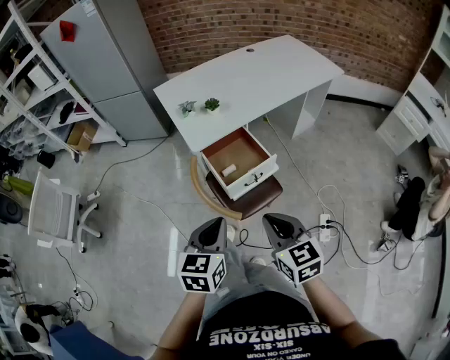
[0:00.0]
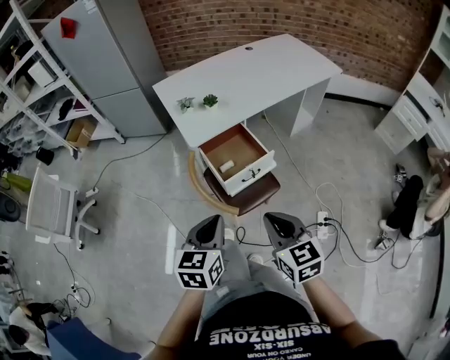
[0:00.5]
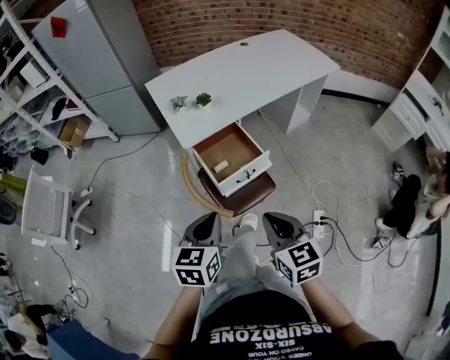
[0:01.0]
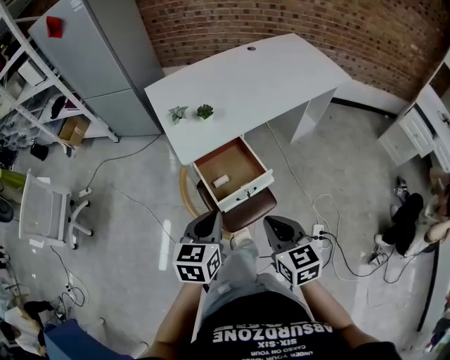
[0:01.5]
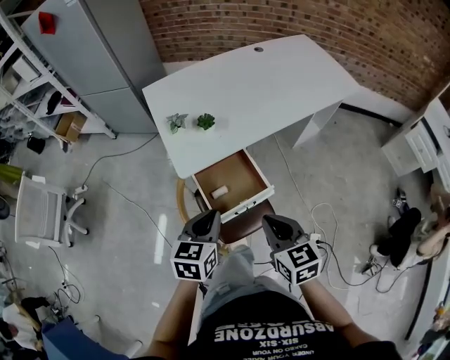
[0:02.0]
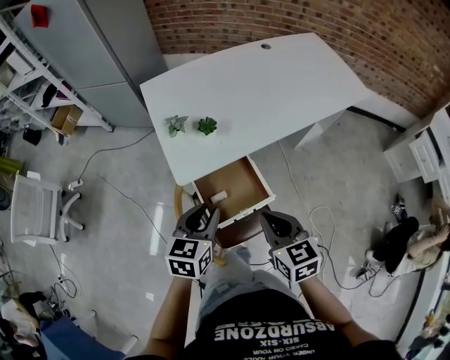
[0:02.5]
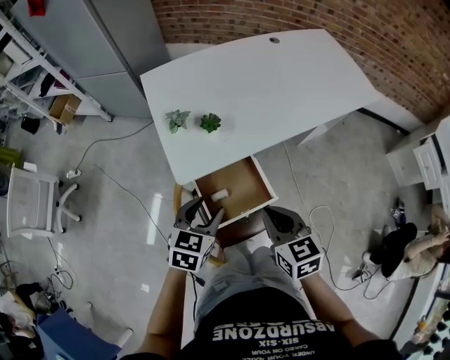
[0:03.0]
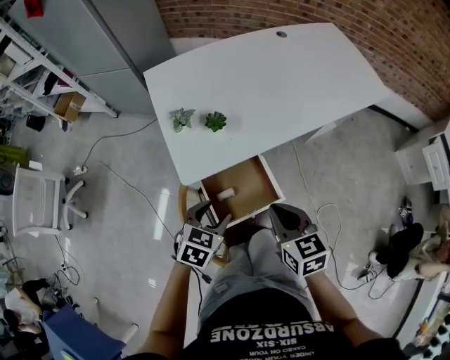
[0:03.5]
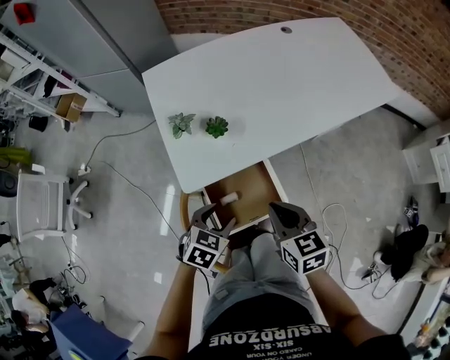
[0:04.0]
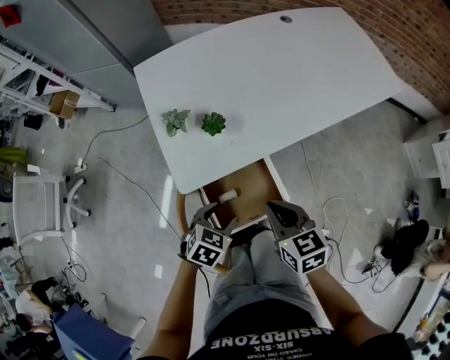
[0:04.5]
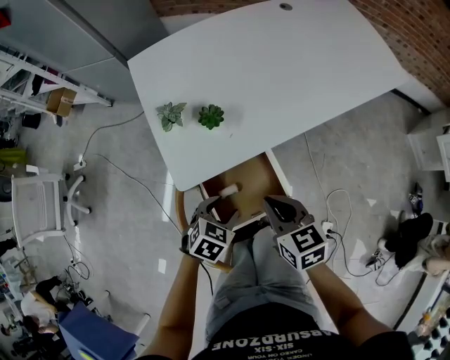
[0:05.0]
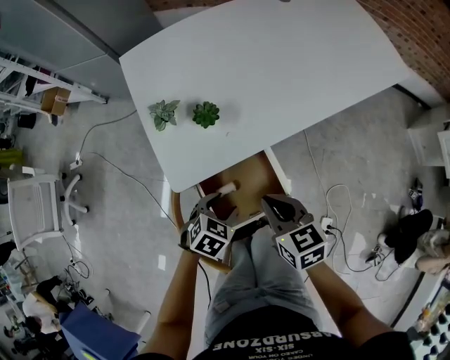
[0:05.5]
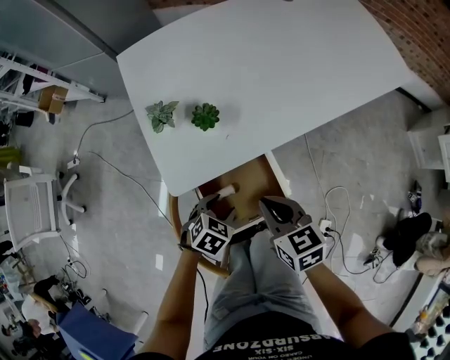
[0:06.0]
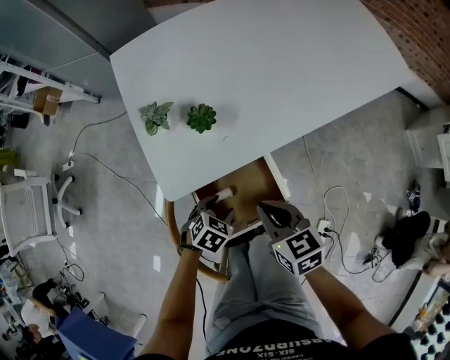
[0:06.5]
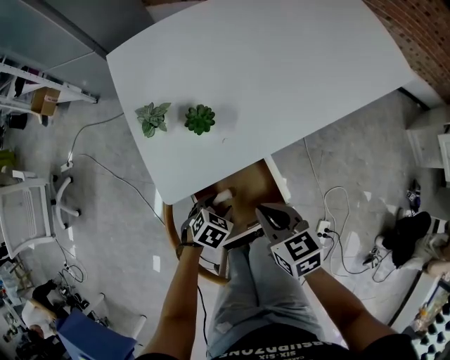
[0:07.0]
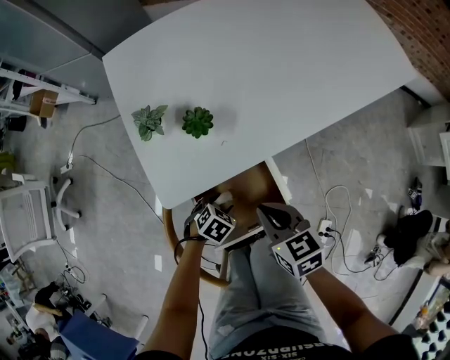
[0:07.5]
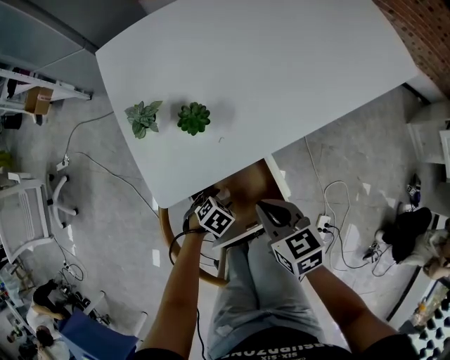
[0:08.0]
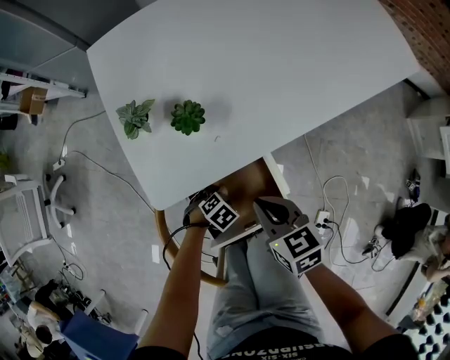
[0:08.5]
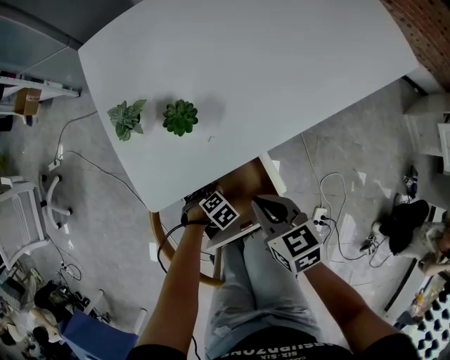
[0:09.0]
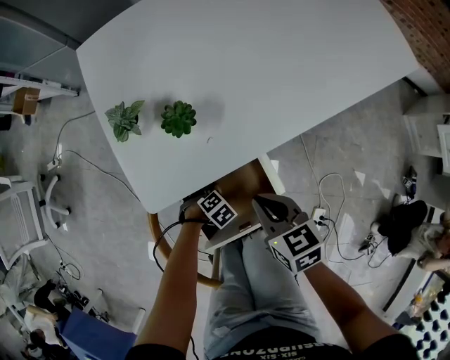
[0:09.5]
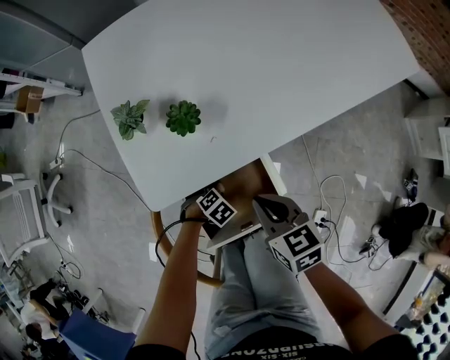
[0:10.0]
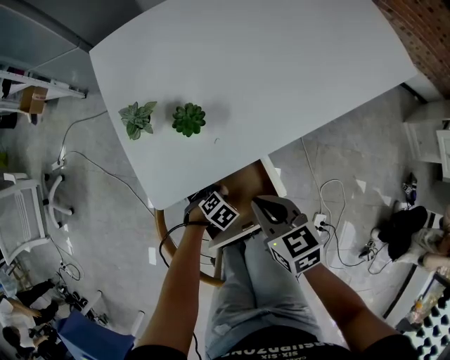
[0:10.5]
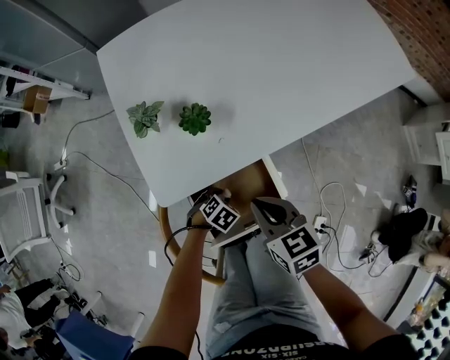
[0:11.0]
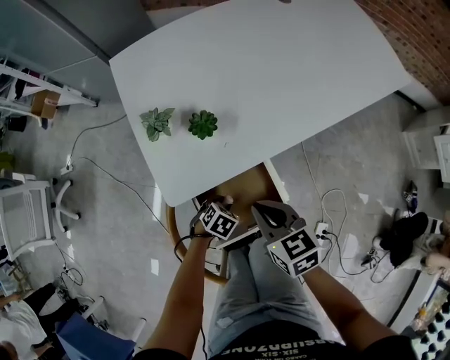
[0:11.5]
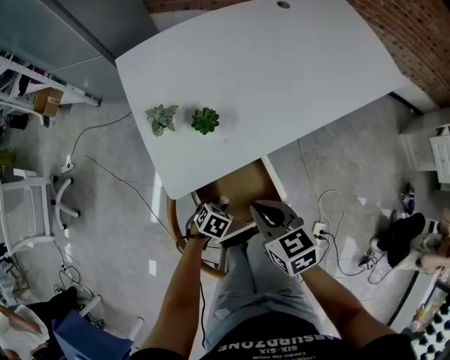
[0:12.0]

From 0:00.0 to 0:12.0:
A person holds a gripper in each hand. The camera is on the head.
From 0:00.0 to 0:02.0: The grippers both shift forward by about 20 cm.
From 0:02.0 to 0:04.0: The right gripper moves forward and downward, some 20 cm; the left gripper moves downward and forward, roughly 20 cm, changes its angle by approximately 30 degrees, and opens up.
From 0:04.0 to 0:06.0: The right gripper goes some 10 cm downward, while the left gripper travels downward by roughly 15 cm.
From 0:06.0 to 0:08.0: The left gripper shifts roughly 15 cm downward. Meanwhile the right gripper travels downward by some 5 cm.
From 0:08.0 to 0:10.0: The left gripper shifts by approximately 5 cm.
From 0:10.0 to 0:12.0: Both grippers travel together upward, some 10 cm. The left gripper swivels approximately 20 degrees.

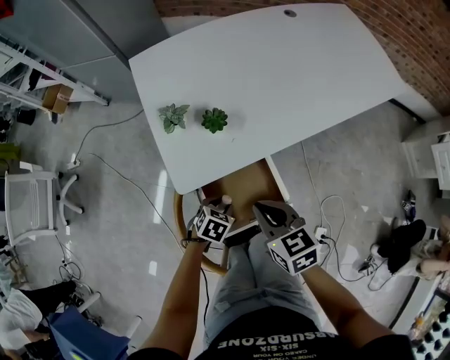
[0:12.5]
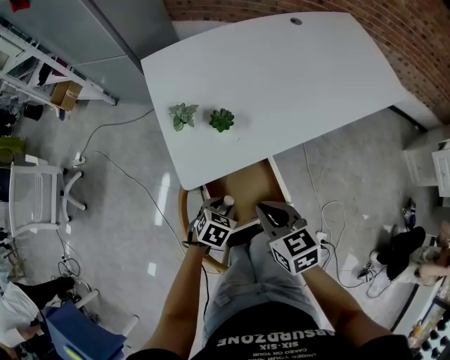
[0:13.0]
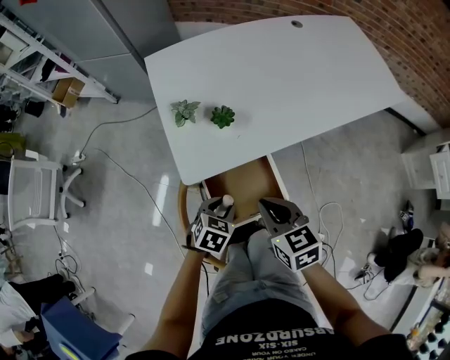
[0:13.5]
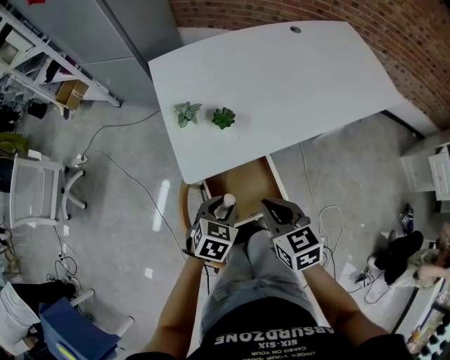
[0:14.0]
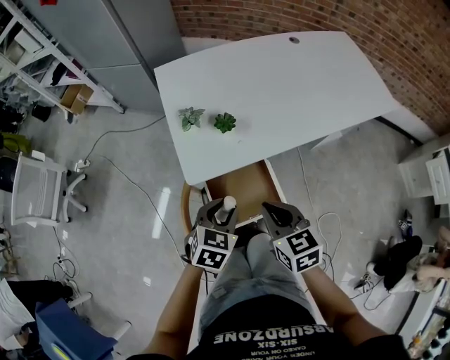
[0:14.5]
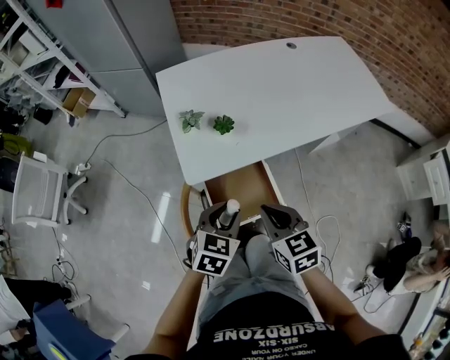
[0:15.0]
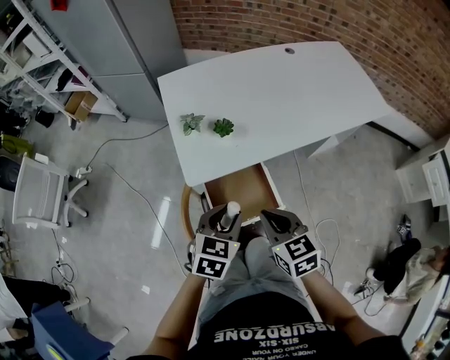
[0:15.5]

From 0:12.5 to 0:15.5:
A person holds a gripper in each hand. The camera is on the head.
From 0:12.5 to 0:14.0: The left gripper is displaced upward by some 15 cm. Meanwhile the right gripper shifts by some 5 cm.
From 0:14.0 to 0:15.5: The left gripper moves upward, some 10 cm. Meanwhile the right gripper changes place by roughly 5 cm.

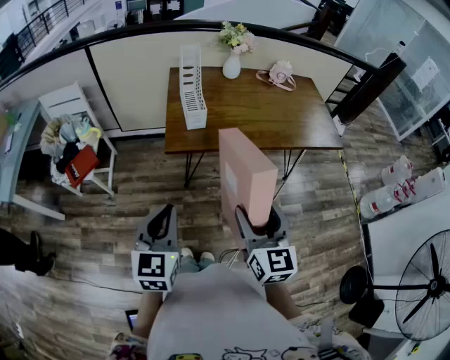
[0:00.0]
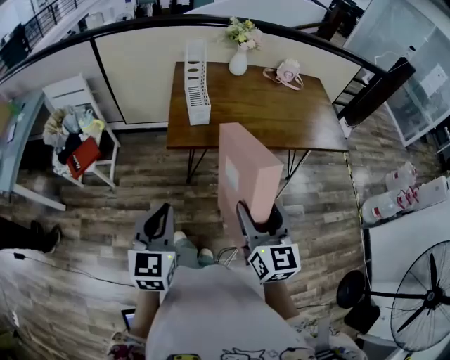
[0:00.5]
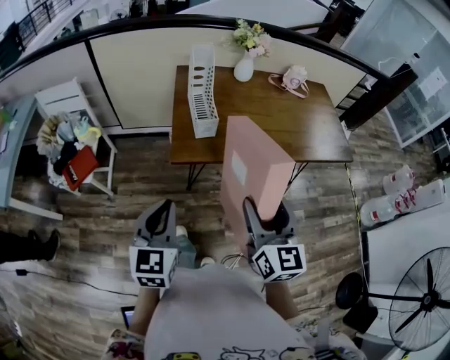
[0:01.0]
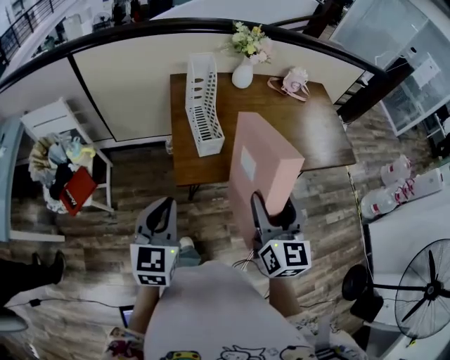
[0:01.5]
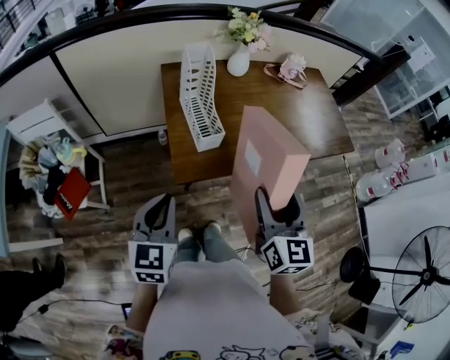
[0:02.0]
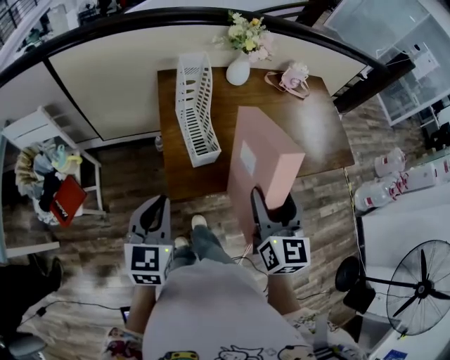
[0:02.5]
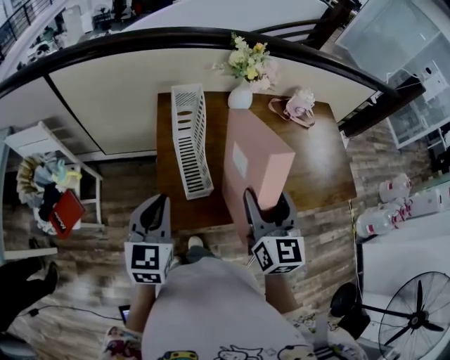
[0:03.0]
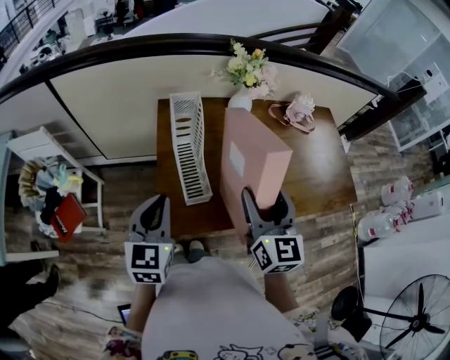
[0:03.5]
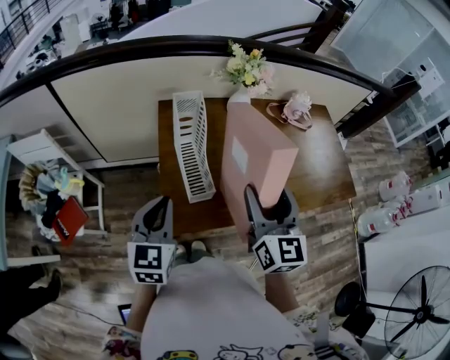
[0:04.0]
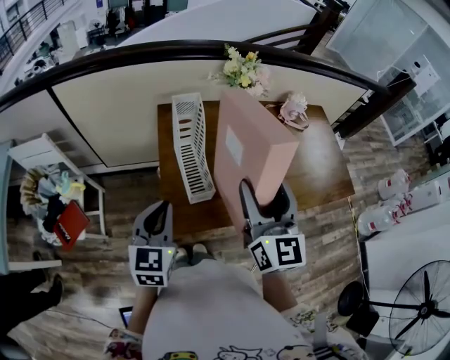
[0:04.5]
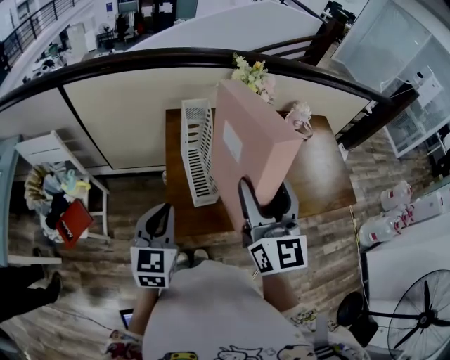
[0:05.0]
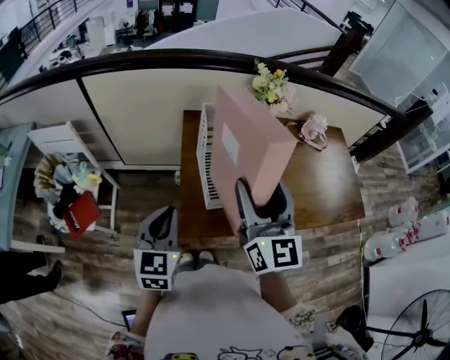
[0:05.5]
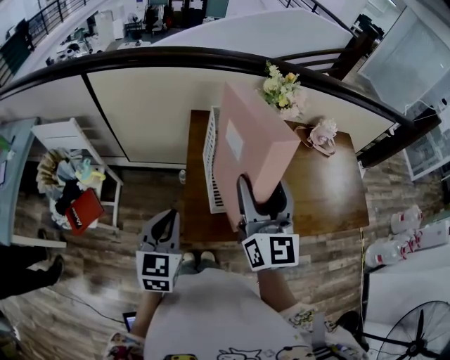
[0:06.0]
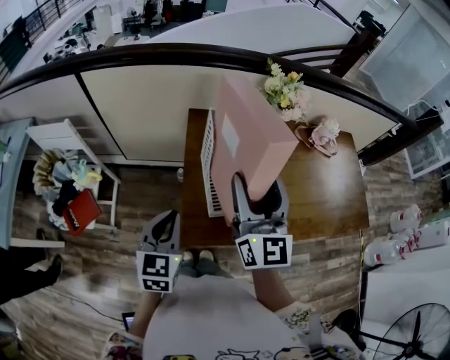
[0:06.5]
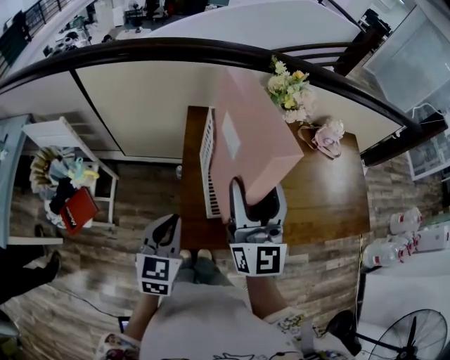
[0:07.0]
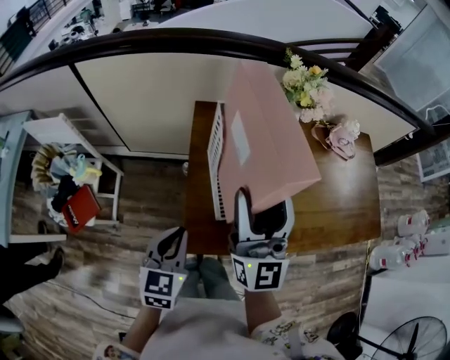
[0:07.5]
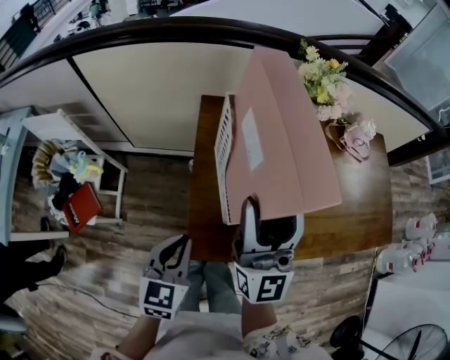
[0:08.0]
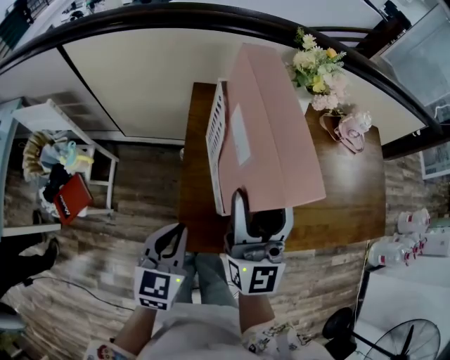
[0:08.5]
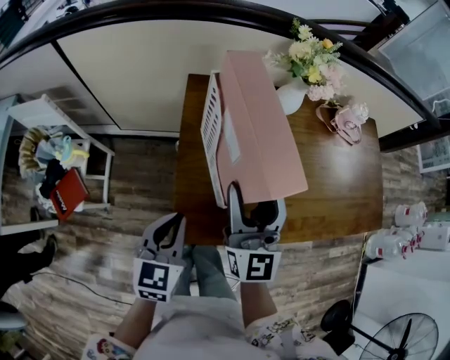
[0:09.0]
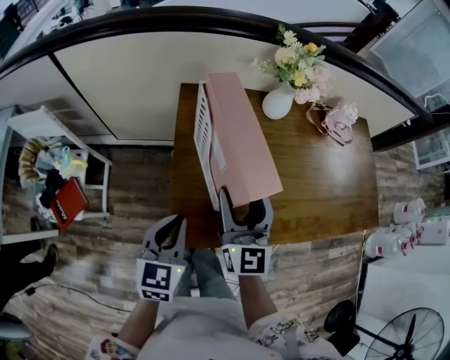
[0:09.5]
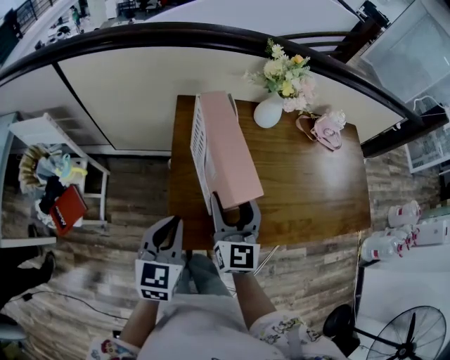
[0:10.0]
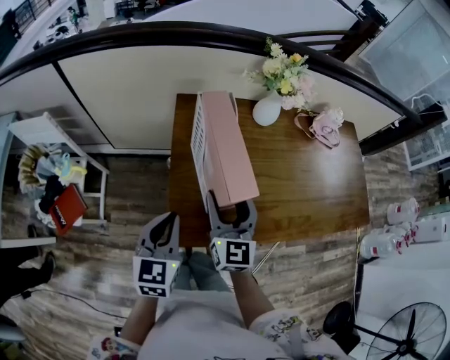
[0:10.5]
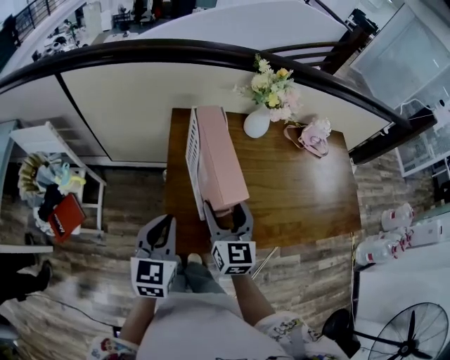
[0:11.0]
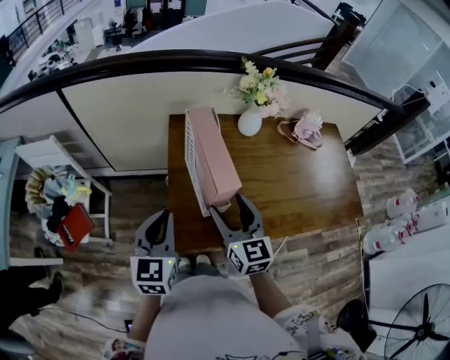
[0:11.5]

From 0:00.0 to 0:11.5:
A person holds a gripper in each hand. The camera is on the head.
From 0:00.0 to 0:02.0: The left gripper travels forward and to the left by approximately 25 cm. Meanwhile the right gripper is displaced forward by some 20 cm.
From 0:02.0 to 0:04.0: Both grippers travel together forward, approximately 15 cm.
From 0:04.0 to 0:06.0: The right gripper heads to the left, covering approximately 10 cm, while the left gripper changes place by some 5 cm.
From 0:06.0 to 0:07.5: The right gripper ends up about 5 cm from where it was. Meanwhile the left gripper shifts some 5 cm downward.
From 0:07.5 to 0:09.5: The right gripper travels downward by some 15 cm.
From 0:09.5 to 0:11.5: The left gripper moves upward, some 10 cm, while the right gripper goes some 5 cm backward.
